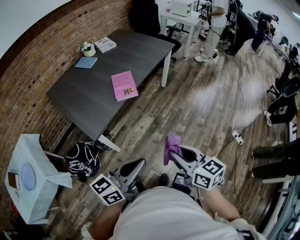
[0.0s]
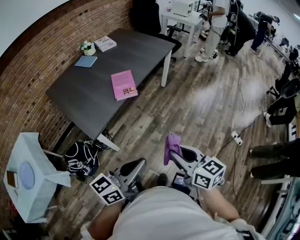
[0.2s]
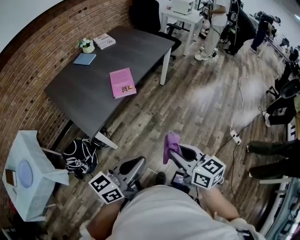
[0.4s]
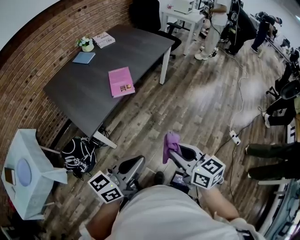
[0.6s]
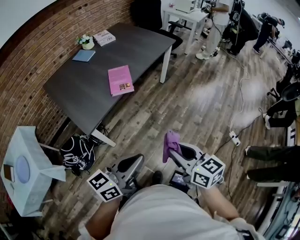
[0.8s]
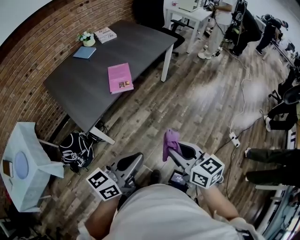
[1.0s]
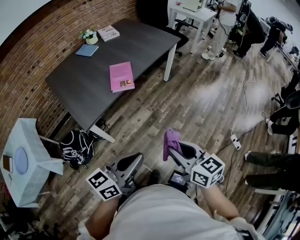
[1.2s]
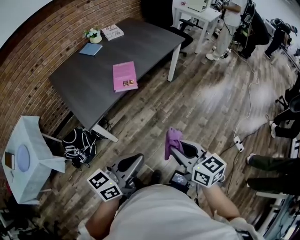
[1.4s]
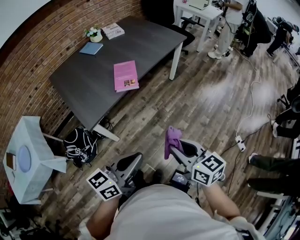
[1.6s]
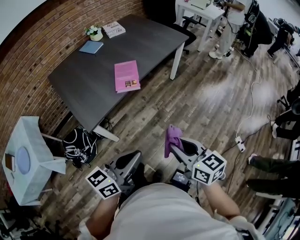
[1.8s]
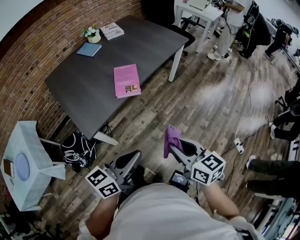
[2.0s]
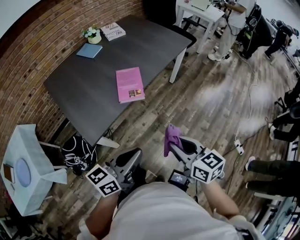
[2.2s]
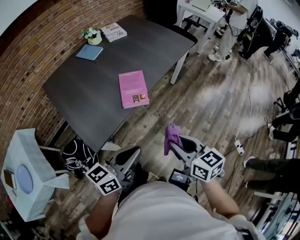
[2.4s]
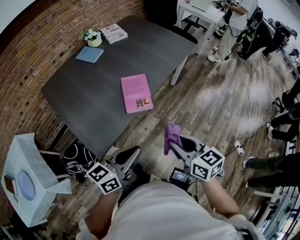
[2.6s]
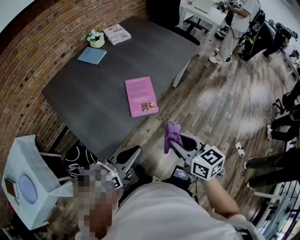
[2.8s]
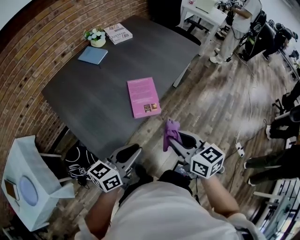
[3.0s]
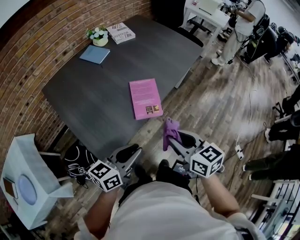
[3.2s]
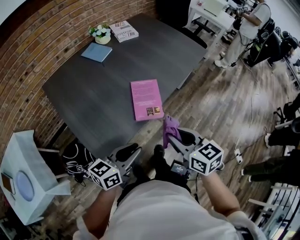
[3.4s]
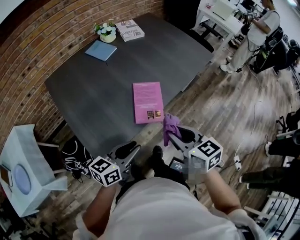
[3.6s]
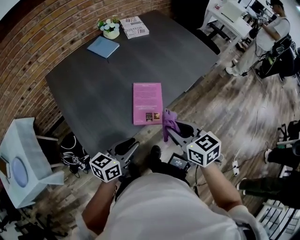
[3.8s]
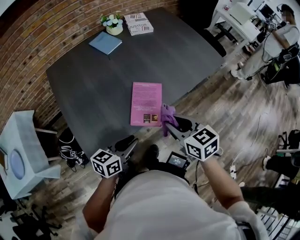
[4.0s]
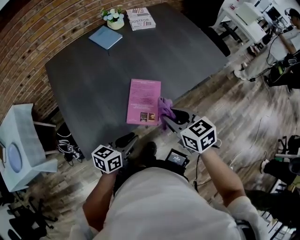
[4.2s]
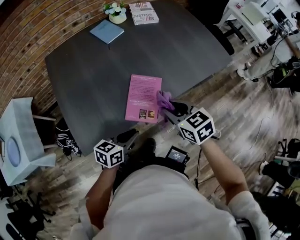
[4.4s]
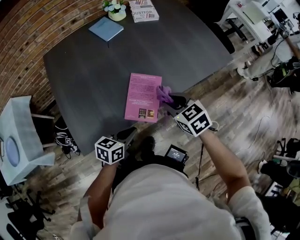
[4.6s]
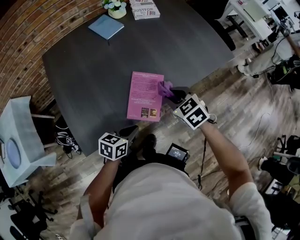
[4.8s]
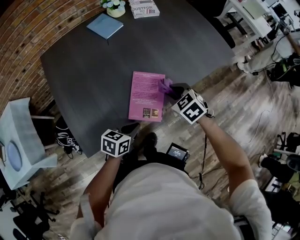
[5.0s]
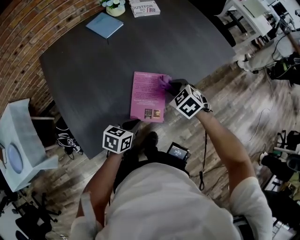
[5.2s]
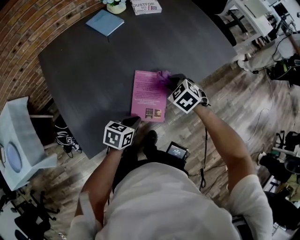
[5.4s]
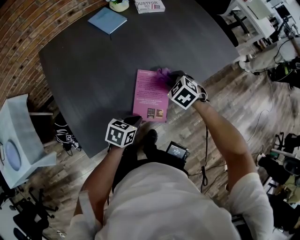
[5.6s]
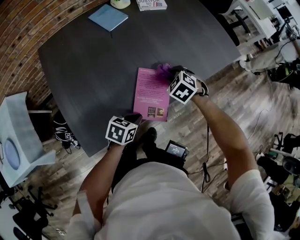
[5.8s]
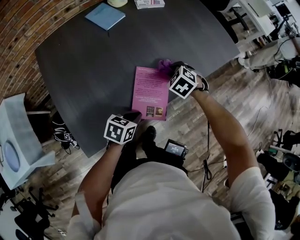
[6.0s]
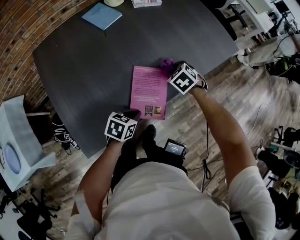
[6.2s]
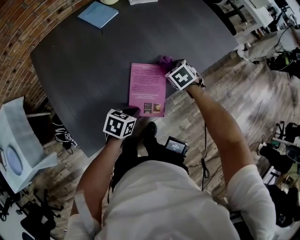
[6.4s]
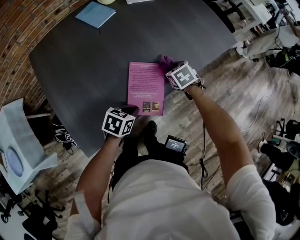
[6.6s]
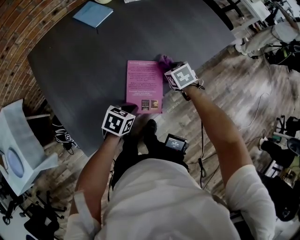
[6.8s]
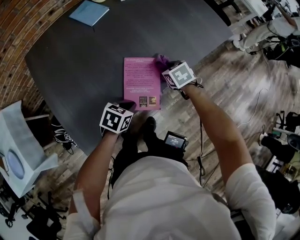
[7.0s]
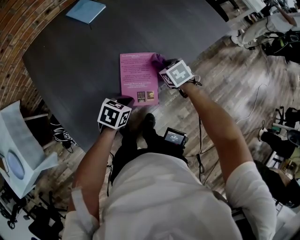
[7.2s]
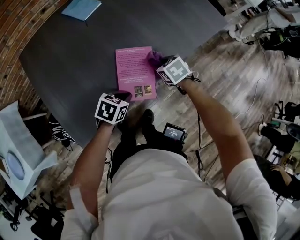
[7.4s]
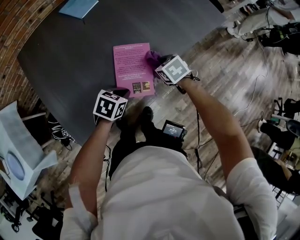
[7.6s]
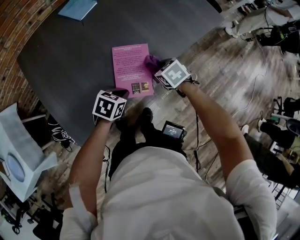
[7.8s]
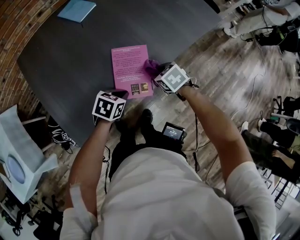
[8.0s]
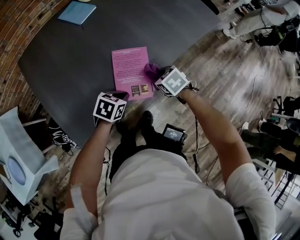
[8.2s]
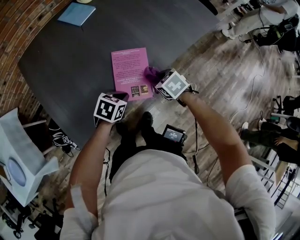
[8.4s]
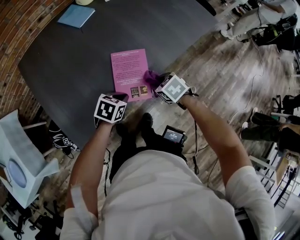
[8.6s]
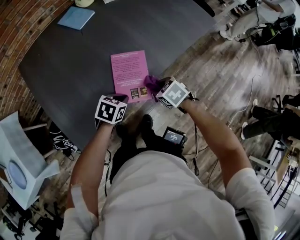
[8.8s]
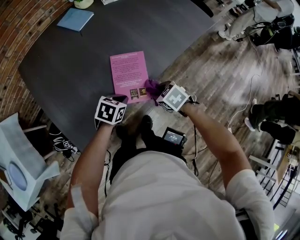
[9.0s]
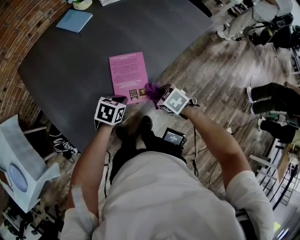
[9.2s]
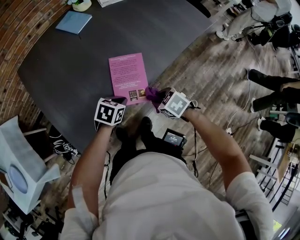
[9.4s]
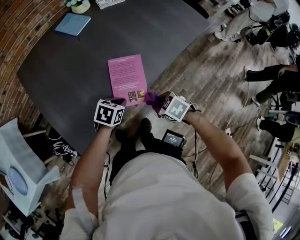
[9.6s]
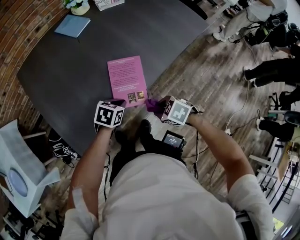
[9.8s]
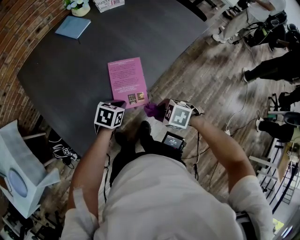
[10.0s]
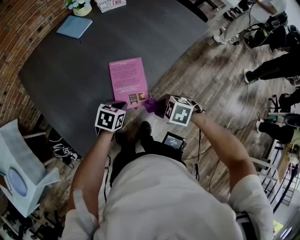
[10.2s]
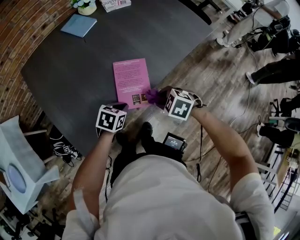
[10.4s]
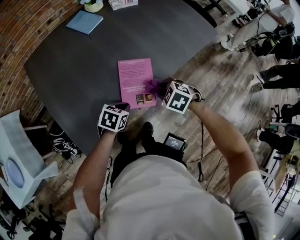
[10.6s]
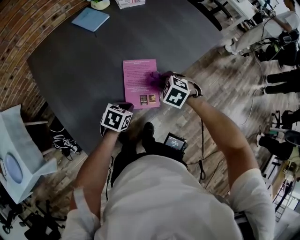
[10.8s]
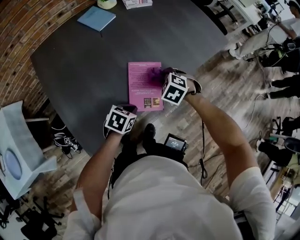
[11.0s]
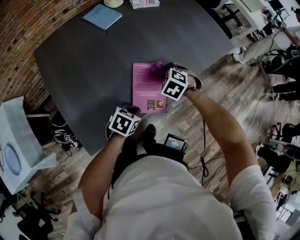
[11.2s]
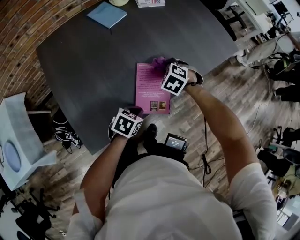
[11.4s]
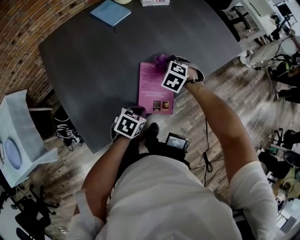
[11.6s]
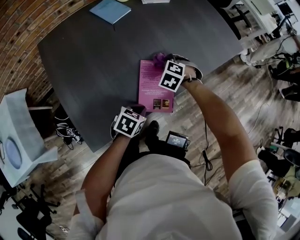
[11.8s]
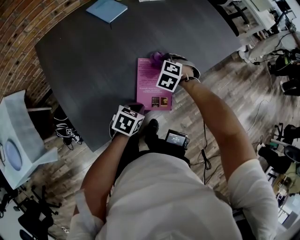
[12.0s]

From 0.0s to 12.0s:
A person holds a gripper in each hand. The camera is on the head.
From 0.0s to 1.6s: The right gripper shifts roughly 5 cm forward. The left gripper shifts by some 5 cm.
From 1.6s to 3.0s: The two grippers go some 30 cm forward and to the left.
From 3.0s to 4.4s: The left gripper shifts some 20 cm downward, forward and to the right, and swivels approximately 30 degrees, while the right gripper travels forward by approximately 20 cm, and rotates about 30 degrees.
From 4.4s to 6.0s: The left gripper goes some 10 cm downward and forward, and changes its angle by some 20 degrees; the right gripper moves forward and downward, approximately 20 cm, and swivels roughly 40 degrees.
From 6.0s to 7.6s: The right gripper shifts some 5 cm backward, and swivels roughly 30 degrees.
From 7.6s to 9.0s: The right gripper shifts some 10 cm backward.
From 9.0s to 10.4s: The right gripper turns by approximately 20 degrees.
From 10.4s to 12.0s: The right gripper changes place by some 20 cm, and swivels approximately 30 degrees.

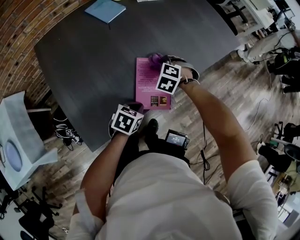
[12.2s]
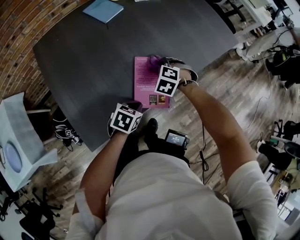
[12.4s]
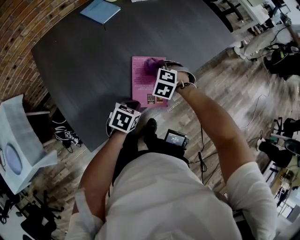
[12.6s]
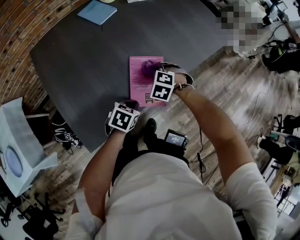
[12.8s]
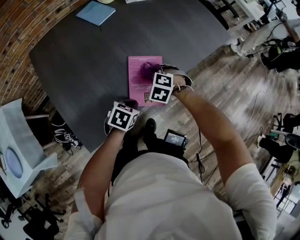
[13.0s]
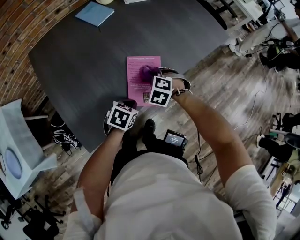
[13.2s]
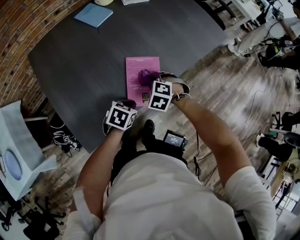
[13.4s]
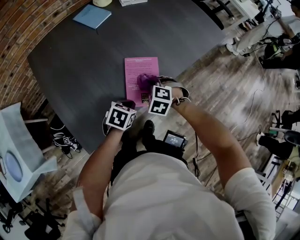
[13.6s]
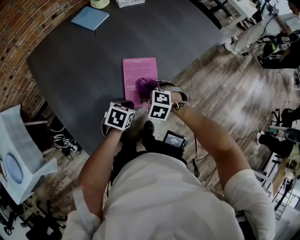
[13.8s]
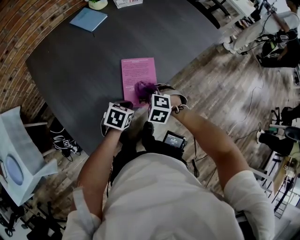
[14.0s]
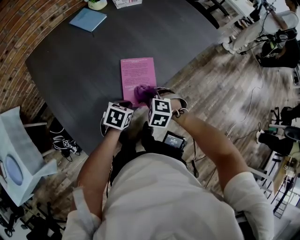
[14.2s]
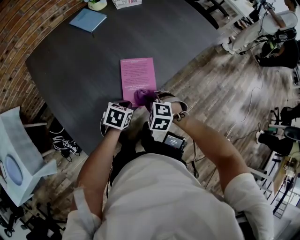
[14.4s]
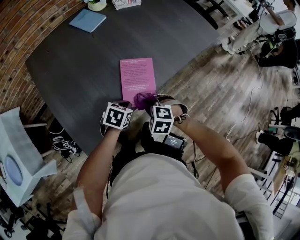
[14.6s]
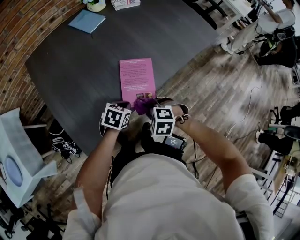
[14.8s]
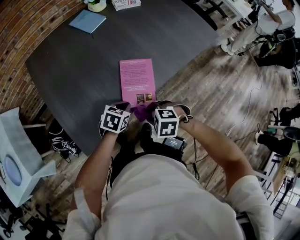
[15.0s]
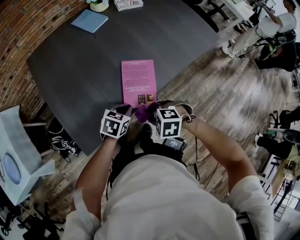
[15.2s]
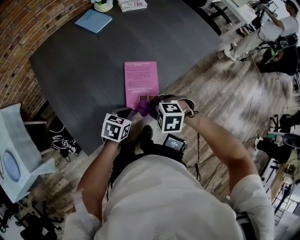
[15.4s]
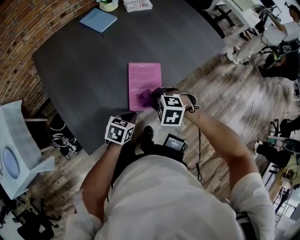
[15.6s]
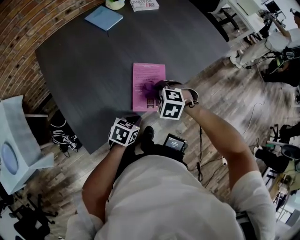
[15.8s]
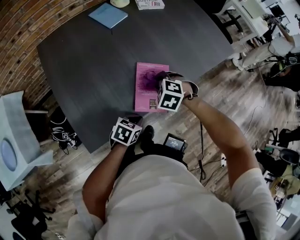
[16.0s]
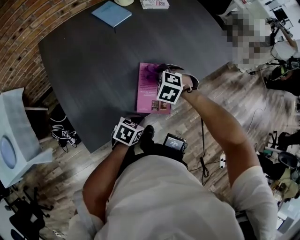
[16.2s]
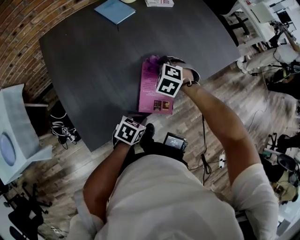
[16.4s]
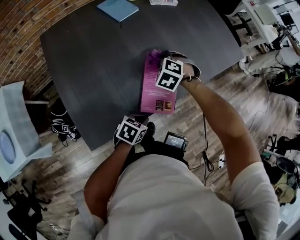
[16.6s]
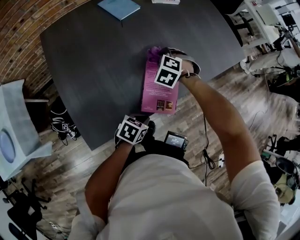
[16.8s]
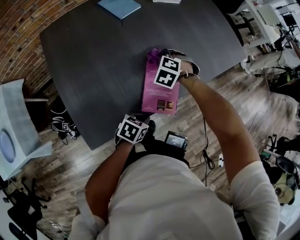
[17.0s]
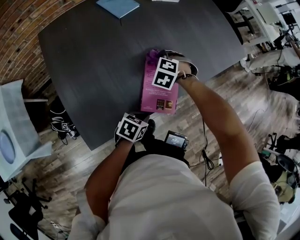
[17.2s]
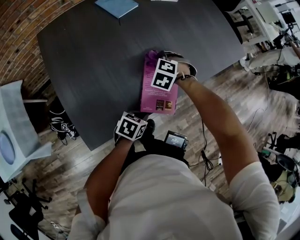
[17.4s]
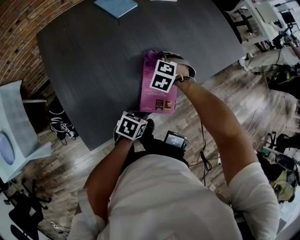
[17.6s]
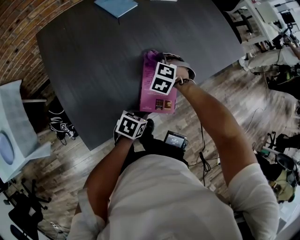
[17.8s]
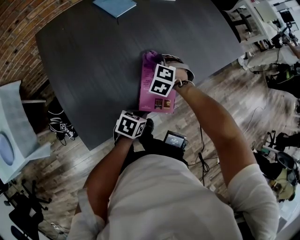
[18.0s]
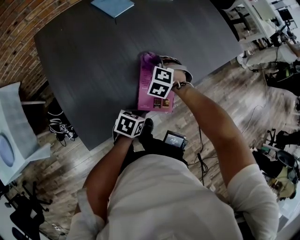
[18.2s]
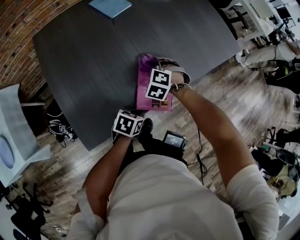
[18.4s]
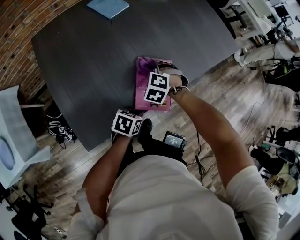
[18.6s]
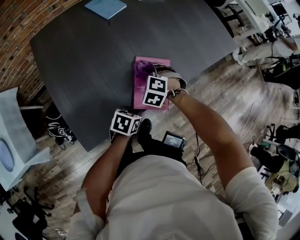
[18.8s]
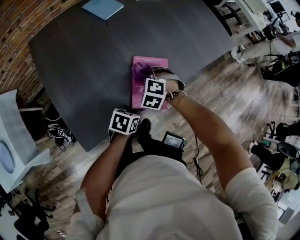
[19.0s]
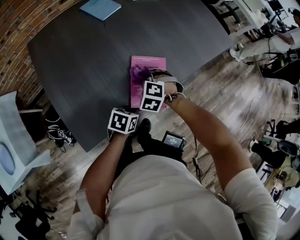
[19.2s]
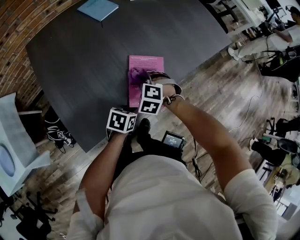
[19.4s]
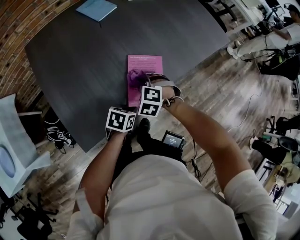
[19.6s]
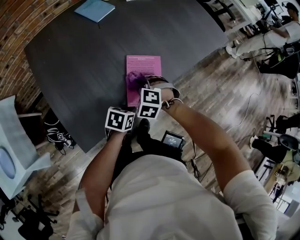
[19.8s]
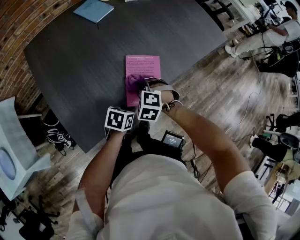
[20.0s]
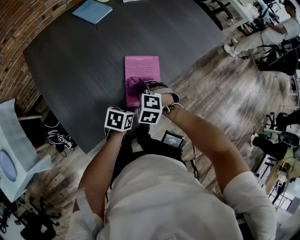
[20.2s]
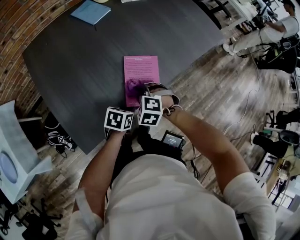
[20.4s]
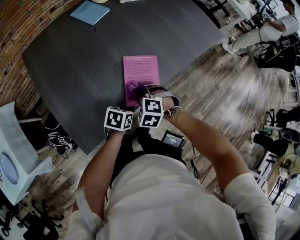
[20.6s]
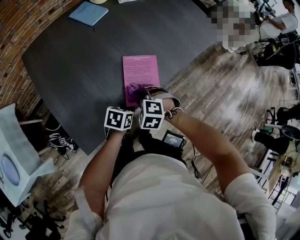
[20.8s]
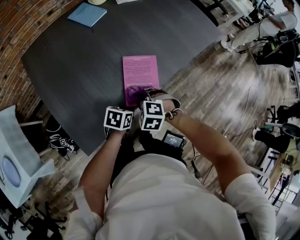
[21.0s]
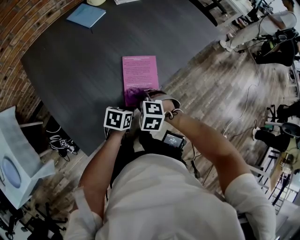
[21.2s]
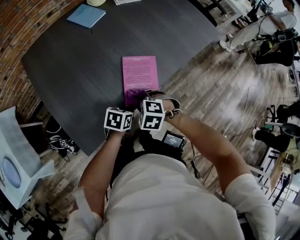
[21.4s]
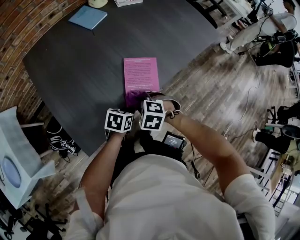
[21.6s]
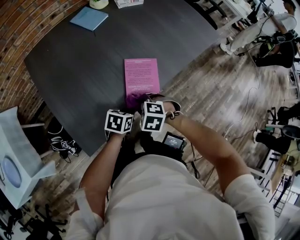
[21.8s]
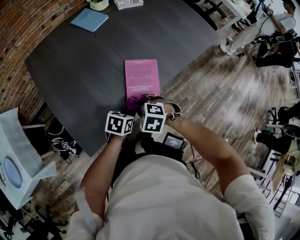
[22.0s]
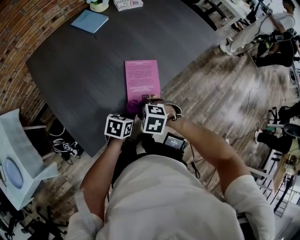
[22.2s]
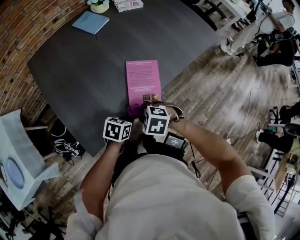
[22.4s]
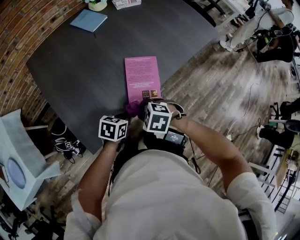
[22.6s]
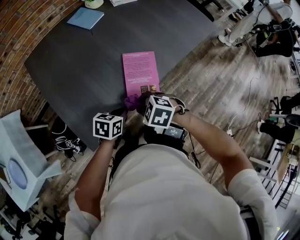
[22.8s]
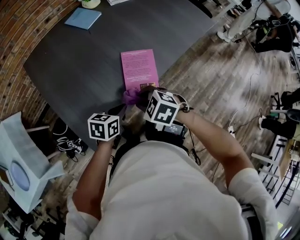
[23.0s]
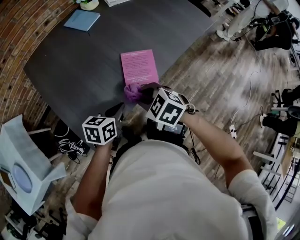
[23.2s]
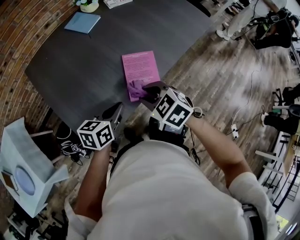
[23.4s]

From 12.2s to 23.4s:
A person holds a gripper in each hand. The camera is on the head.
From 12.2s to 13.8s: The right gripper travels backward by about 10 cm.
From 13.8s to 15.4s: The right gripper shifts by about 10 cm, and changes its angle by approximately 20 degrees.
From 15.4s to 17.0s: The right gripper shifts by approximately 25 cm, and turns by some 20 degrees.
From 17.0s to 18.6s: The right gripper shifts approximately 5 cm backward.
From 18.6s to 20.2s: The right gripper travels backward by some 10 cm.
From 20.2s to 21.8s: The right gripper heads backward, covering roughly 5 cm.
From 21.8s to 23.4s: The grippers both shift upward by some 15 cm. The left gripper turns by approximately 20 degrees. The right gripper rotates some 30 degrees.

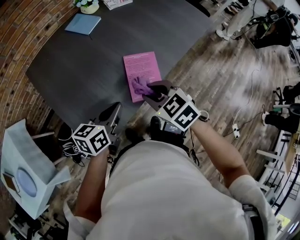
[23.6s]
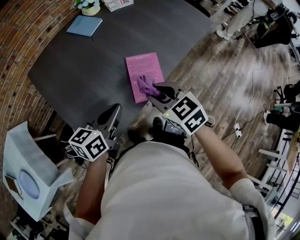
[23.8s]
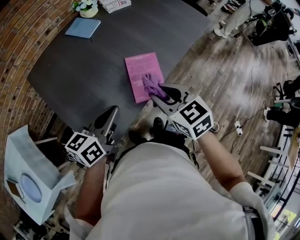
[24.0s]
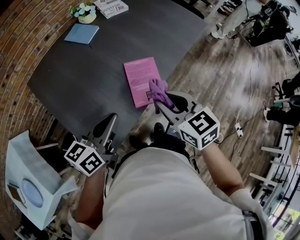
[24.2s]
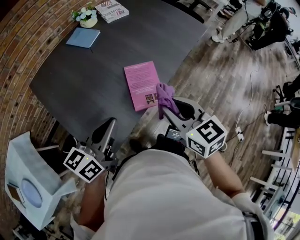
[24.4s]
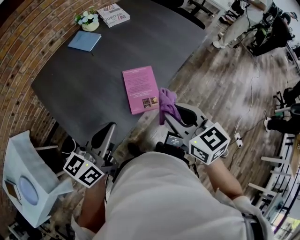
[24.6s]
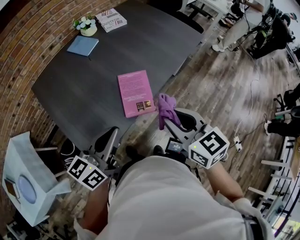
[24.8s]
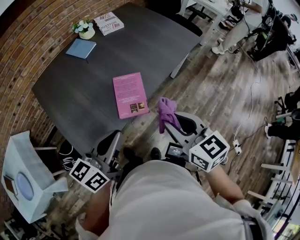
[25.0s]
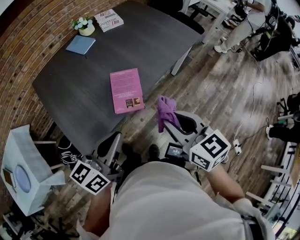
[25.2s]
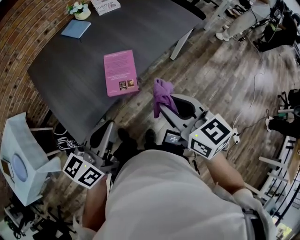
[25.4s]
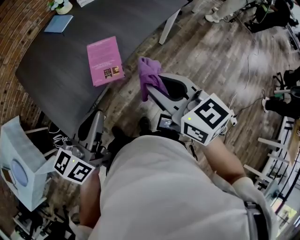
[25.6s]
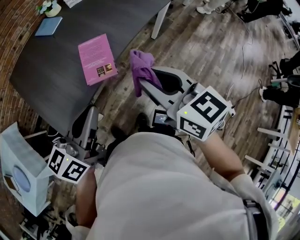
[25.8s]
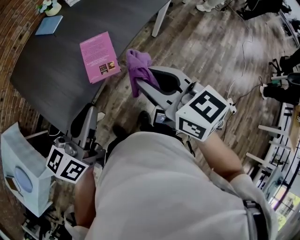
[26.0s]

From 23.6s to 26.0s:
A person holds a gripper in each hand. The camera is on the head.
From 23.6s to 24.8s: The right gripper goes approximately 15 cm upward, to the right and backward, and turns by some 30 degrees. Meanwhile the left gripper is displaced upward and backward by about 15 cm.
From 24.8s to 26.0s: The left gripper travels to the right and backward by about 10 cm. The right gripper heads to the right, covering approximately 5 cm.
